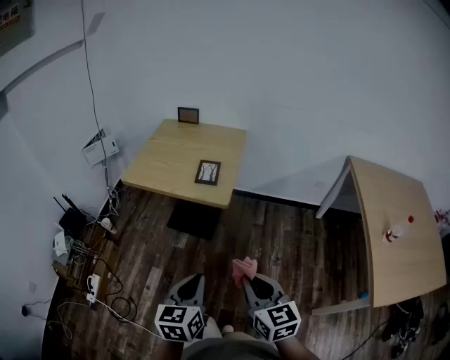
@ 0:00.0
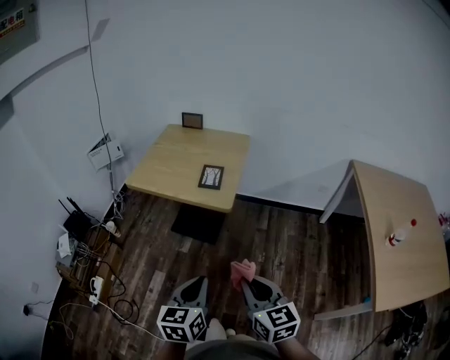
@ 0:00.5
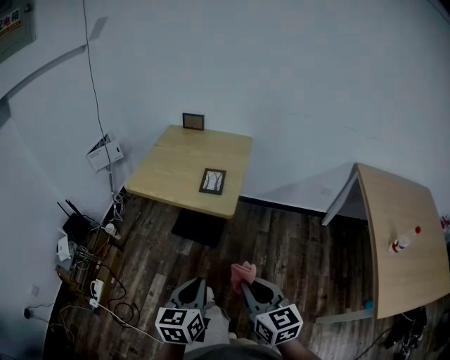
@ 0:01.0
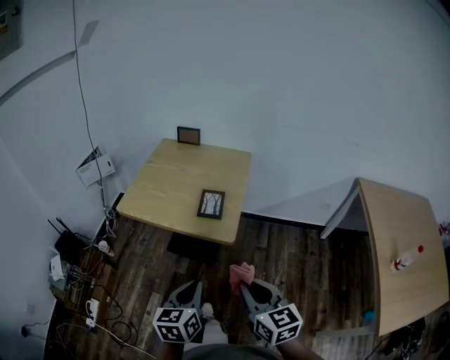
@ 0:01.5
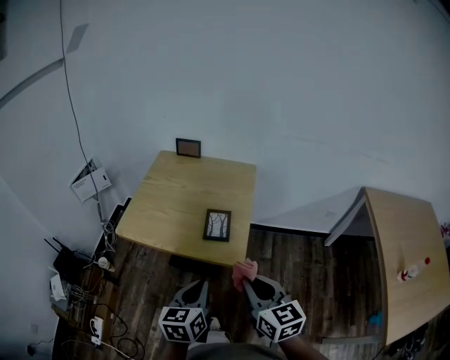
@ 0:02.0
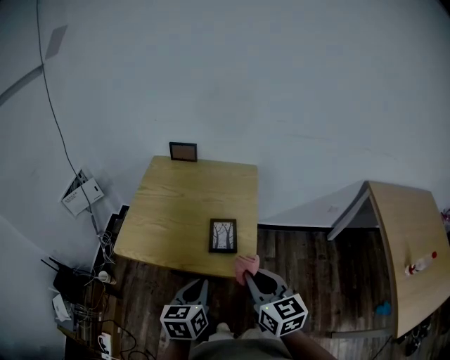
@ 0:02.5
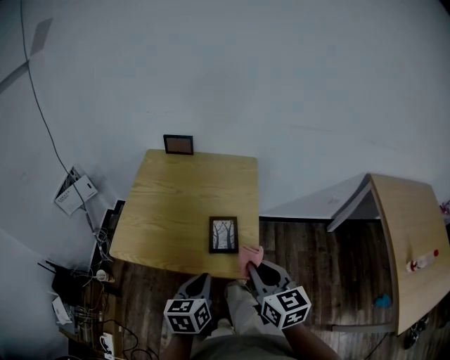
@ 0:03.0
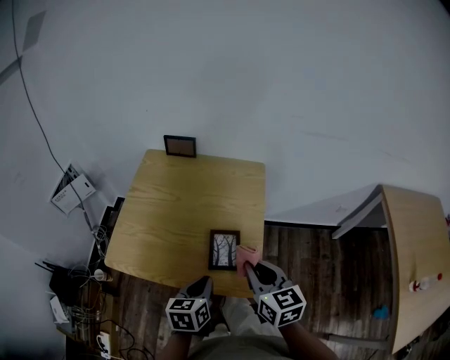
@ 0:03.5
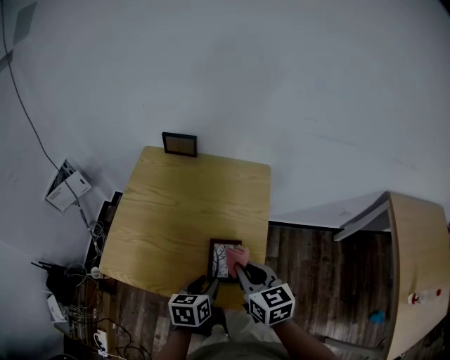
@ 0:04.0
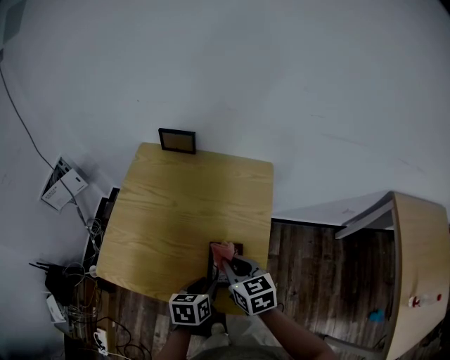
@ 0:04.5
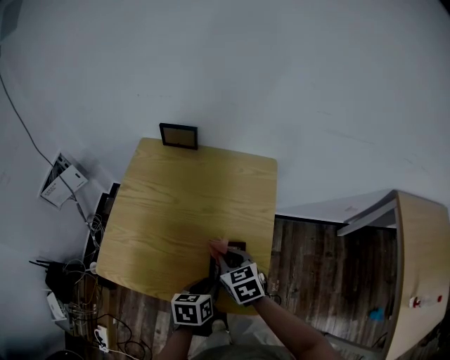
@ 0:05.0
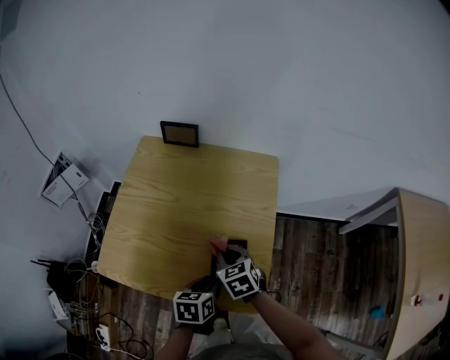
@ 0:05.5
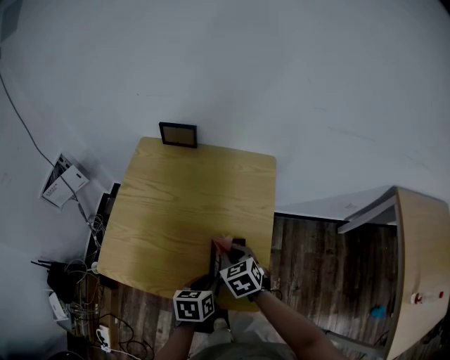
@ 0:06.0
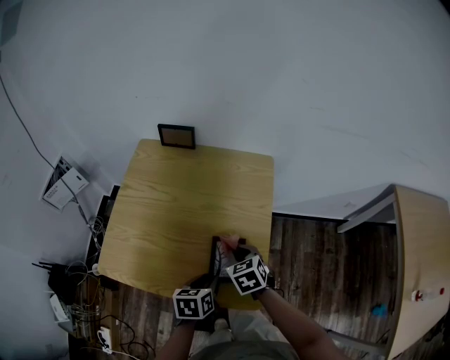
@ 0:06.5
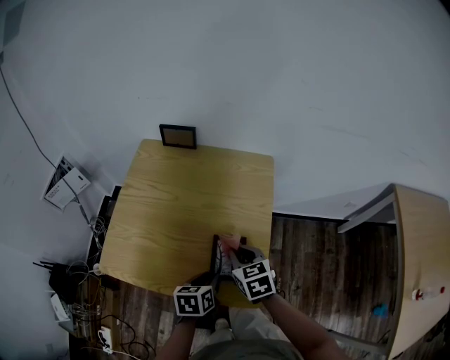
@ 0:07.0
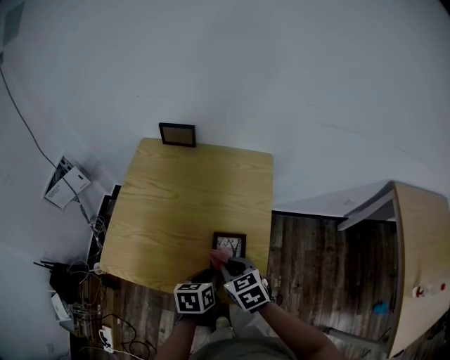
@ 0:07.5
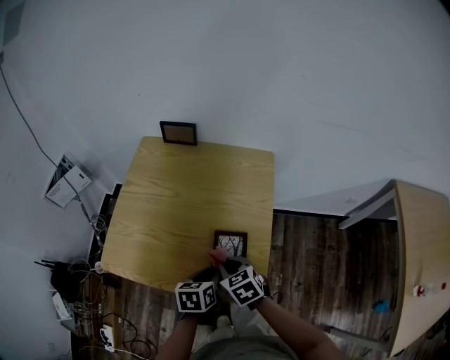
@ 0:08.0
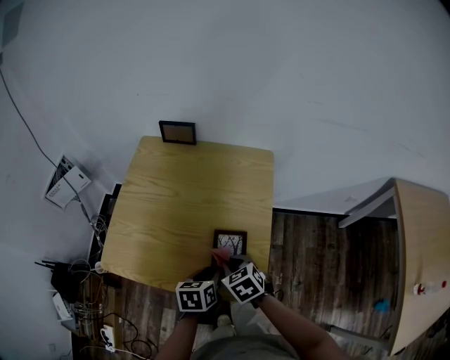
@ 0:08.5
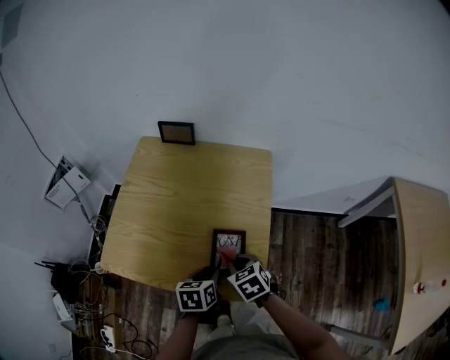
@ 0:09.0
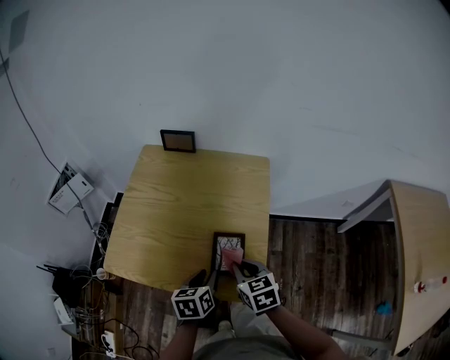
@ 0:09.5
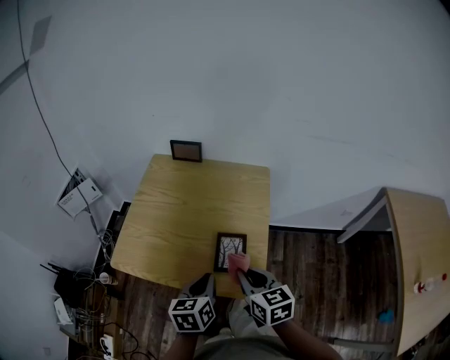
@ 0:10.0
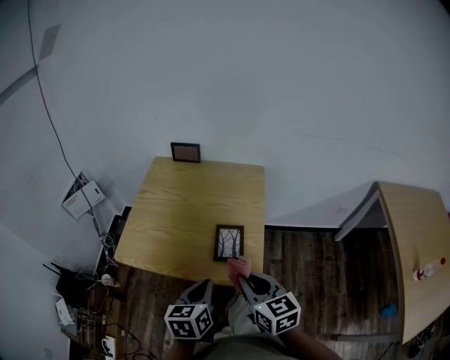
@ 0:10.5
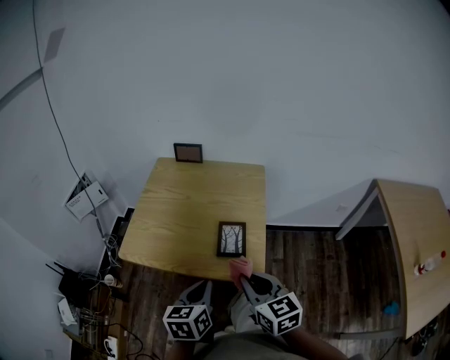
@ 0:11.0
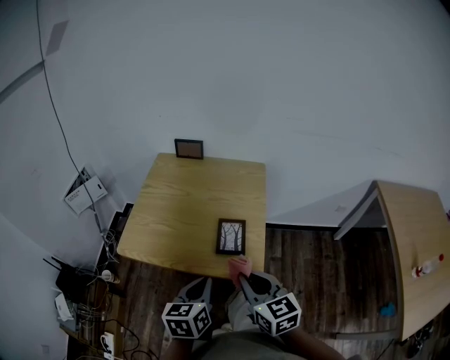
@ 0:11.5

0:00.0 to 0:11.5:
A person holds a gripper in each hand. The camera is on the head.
0:00.0 to 0:02.0: Both grippers move forward, some 25 cm.
0:02.0 to 0:04.0: The left gripper travels forward and downward by about 25 cm, changes its angle by approximately 20 degrees, and opens. Meanwhile the right gripper shifts roughly 25 cm forward.
0:04.0 to 0:06.0: The right gripper moves downward and forward, about 15 cm, and changes its angle by some 30 degrees.
0:06.0 to 0:07.5: The right gripper travels backward by about 5 cm.
0:07.5 to 0:09.5: There are only small adjustments of the grippers.
0:09.5 to 0:11.5: Both grippers travel together backward and upward, about 20 cm. The left gripper closes its fingers; the right gripper rotates about 20 degrees.

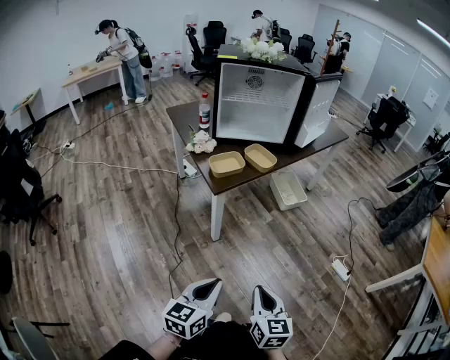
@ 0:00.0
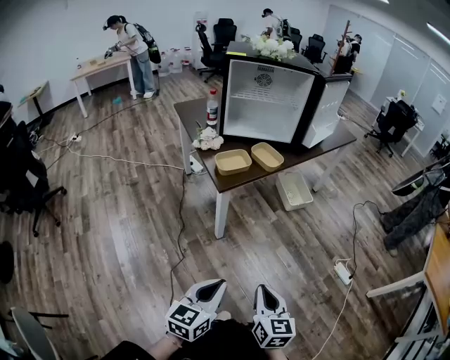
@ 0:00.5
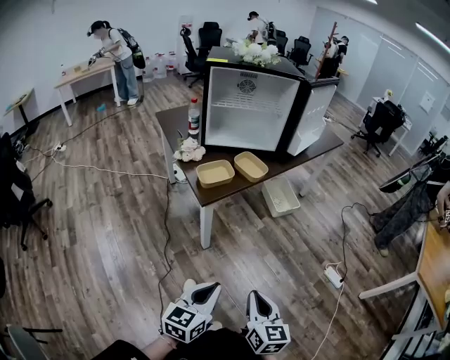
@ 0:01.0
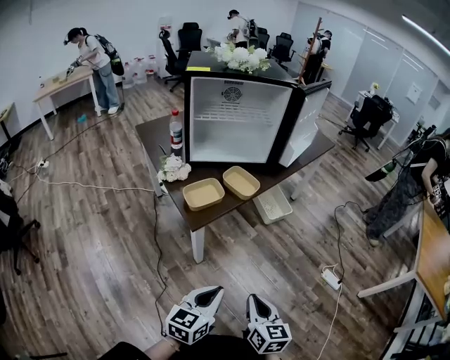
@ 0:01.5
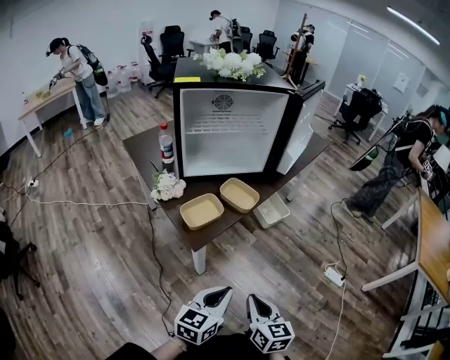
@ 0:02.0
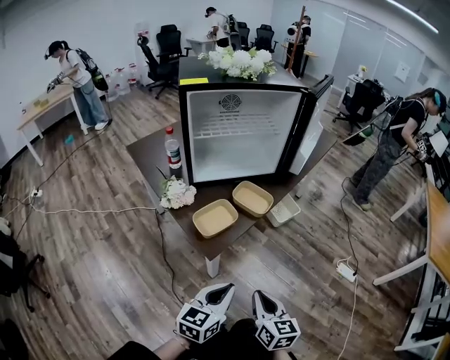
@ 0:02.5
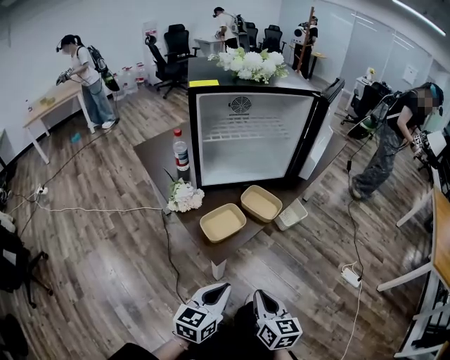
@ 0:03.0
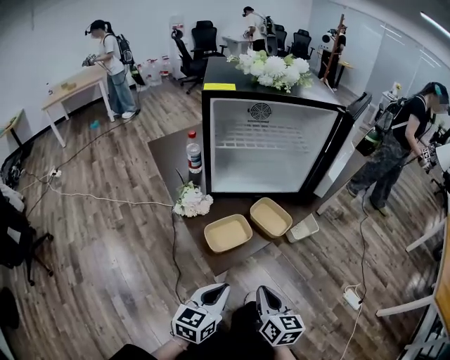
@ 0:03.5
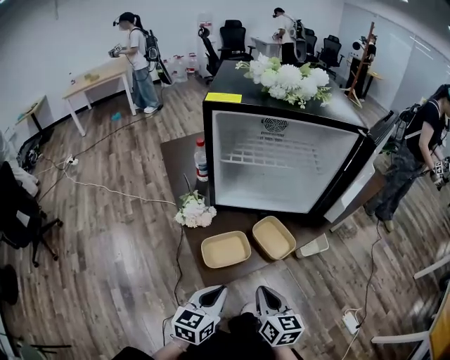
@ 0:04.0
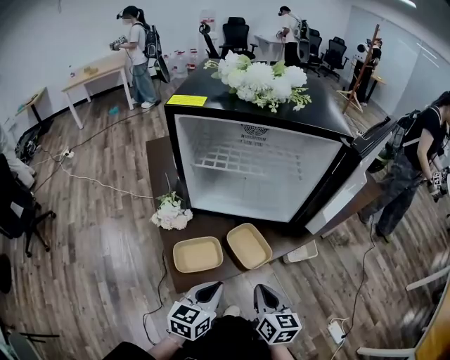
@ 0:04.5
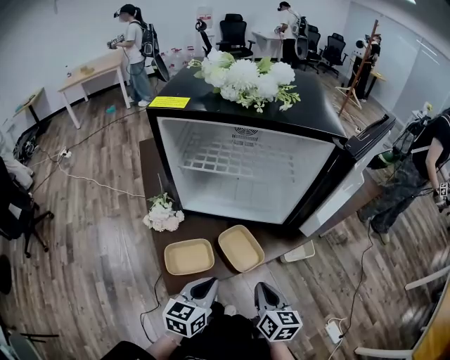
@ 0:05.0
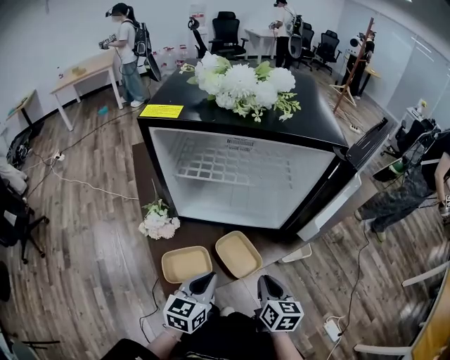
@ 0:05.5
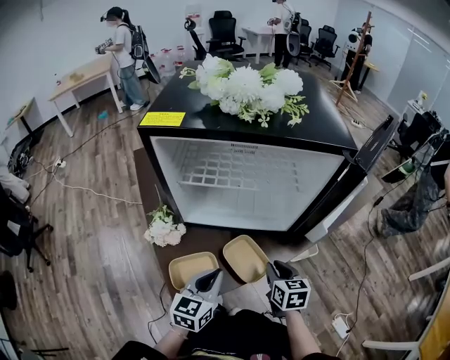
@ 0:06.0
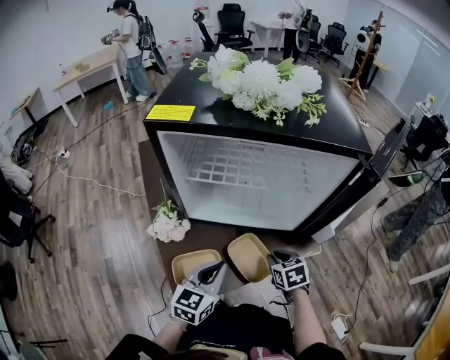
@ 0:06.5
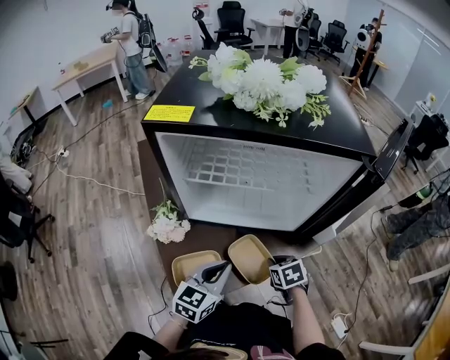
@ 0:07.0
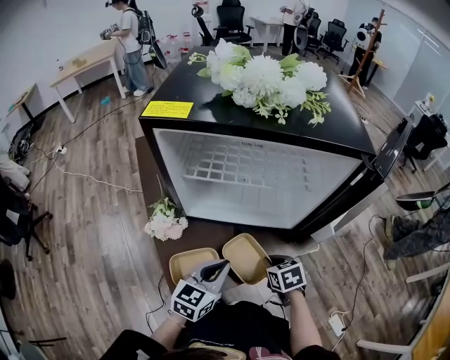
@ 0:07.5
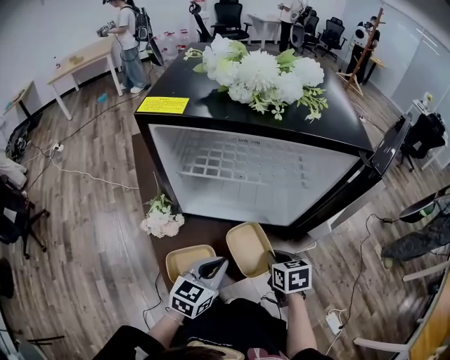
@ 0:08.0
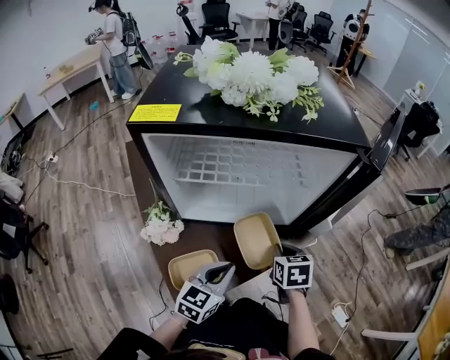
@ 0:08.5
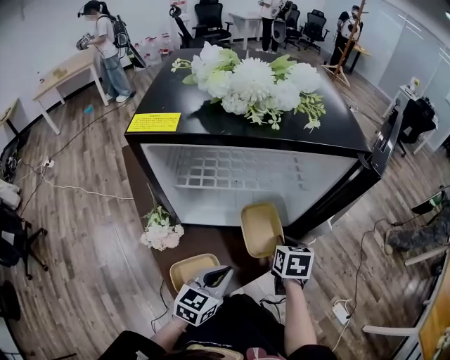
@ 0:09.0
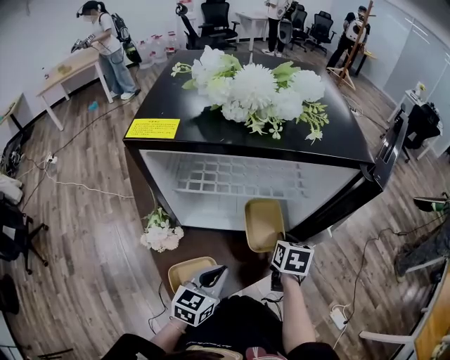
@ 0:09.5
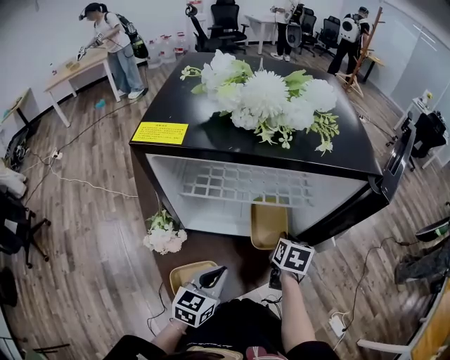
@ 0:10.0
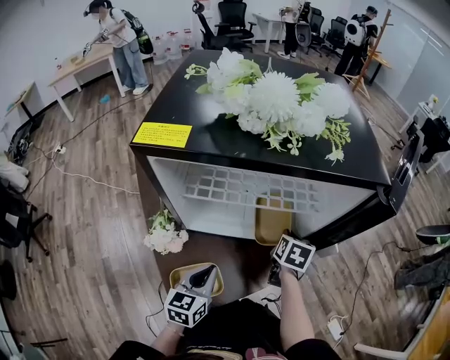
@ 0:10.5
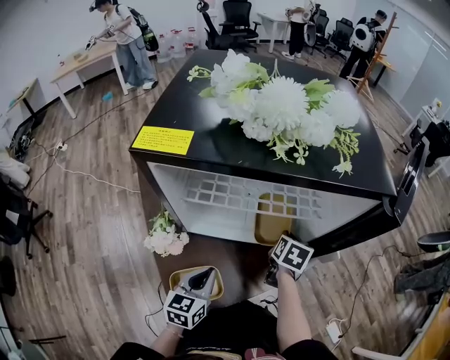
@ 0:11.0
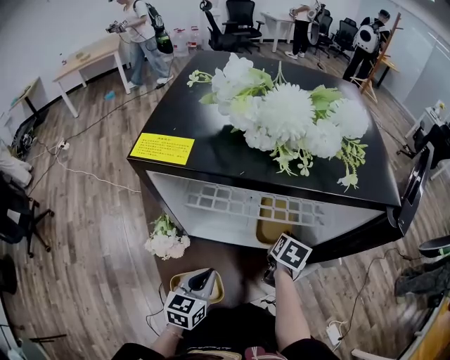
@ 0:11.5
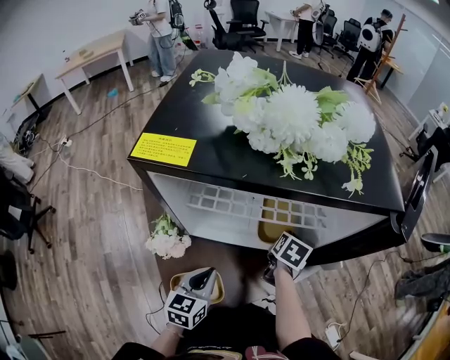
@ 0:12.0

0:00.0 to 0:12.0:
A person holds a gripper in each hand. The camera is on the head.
0:00.0 to 0:02.0: The grippers both shift forward by about 20 cm.
0:02.0 to 0:04.0: The right gripper moves forward, about 25 cm, while the left gripper travels forward and to the left by approximately 20 cm, and rotates about 20 degrees.
0:04.0 to 0:06.0: Both grippers travel together forward and to the right, about 20 cm.
0:08.0 to 0:10.0: The right gripper travels forward by some 10 cm, and swivels about 30 degrees.
0:10.0 to 0:12.0: The right gripper is displaced forward by roughly 5 cm. The left gripper is displaced to the left by about 5 cm.

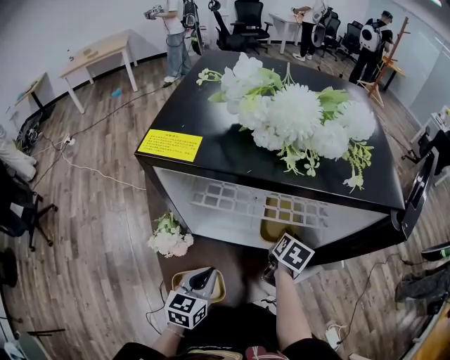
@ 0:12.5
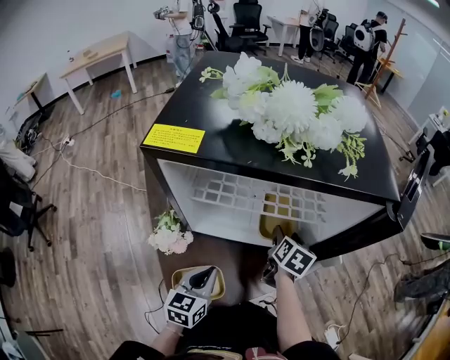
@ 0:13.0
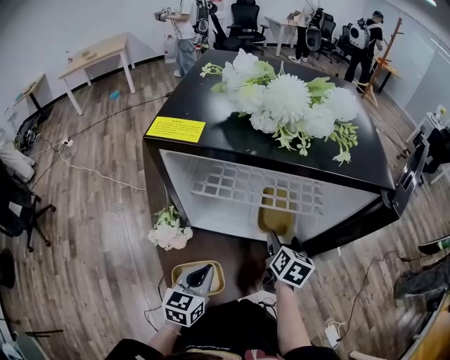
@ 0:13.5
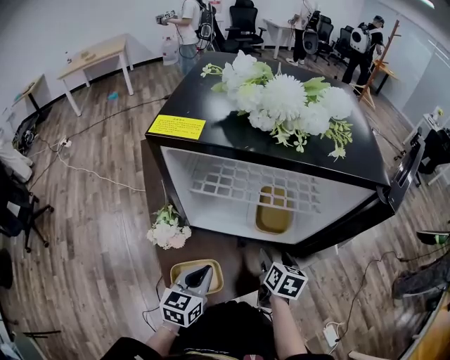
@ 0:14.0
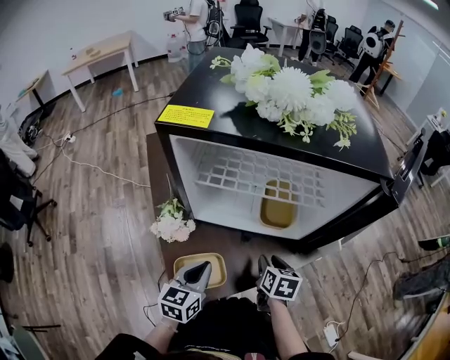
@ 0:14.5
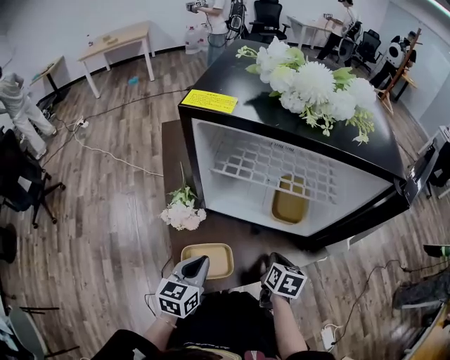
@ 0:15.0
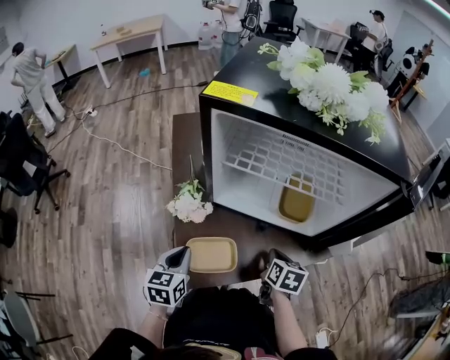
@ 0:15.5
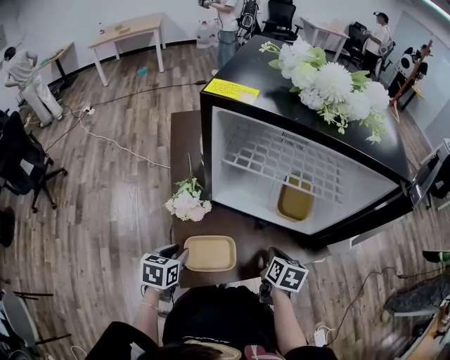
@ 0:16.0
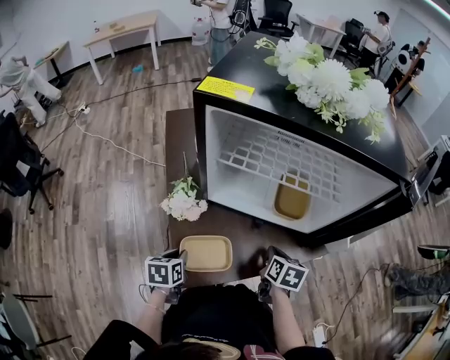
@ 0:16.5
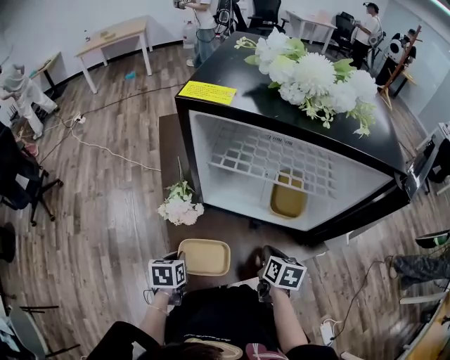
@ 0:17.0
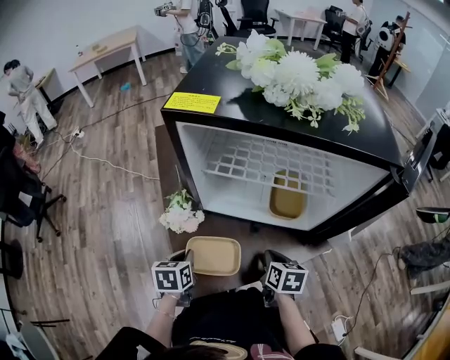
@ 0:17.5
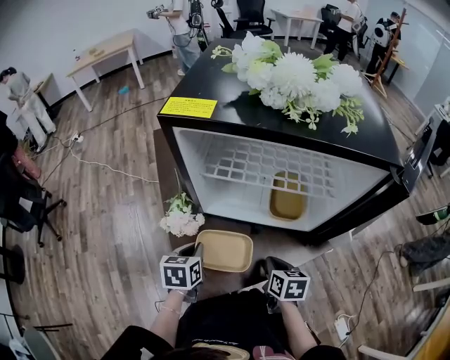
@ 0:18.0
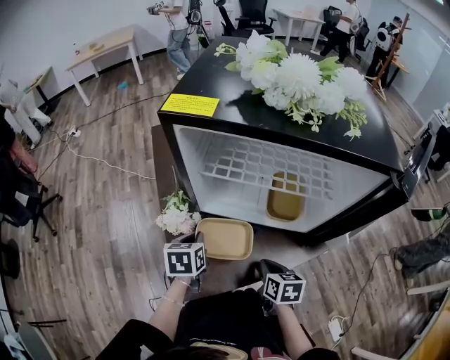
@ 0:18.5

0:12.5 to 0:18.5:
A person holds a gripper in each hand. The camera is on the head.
0:12.5 to 0:14.5: The right gripper moves backward, roughly 15 cm, turns by roughly 20 degrees, and opens, then closes again.
0:14.5 to 0:16.5: The right gripper closes up, while the left gripper travels to the left and downward by about 15 cm, and changes its angle by approximately 30 degrees.
0:16.5 to 0:18.5: The left gripper is displaced forward, upward and to the right by roughly 15 cm.
